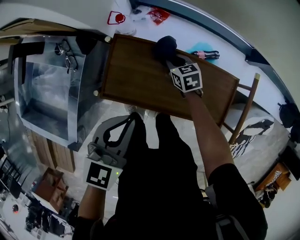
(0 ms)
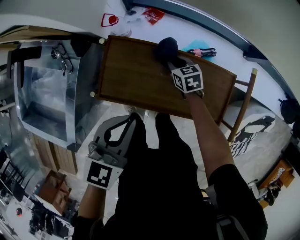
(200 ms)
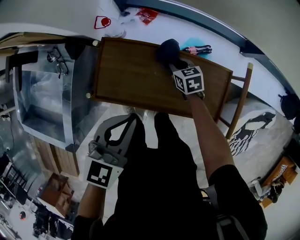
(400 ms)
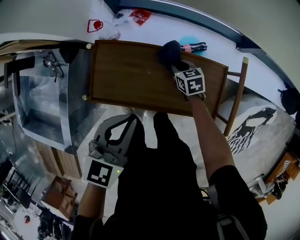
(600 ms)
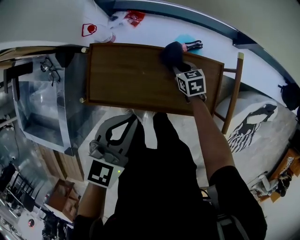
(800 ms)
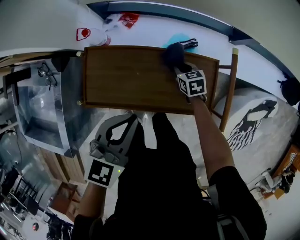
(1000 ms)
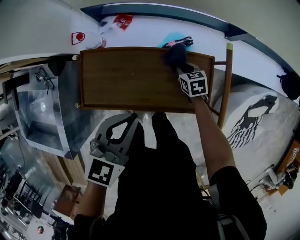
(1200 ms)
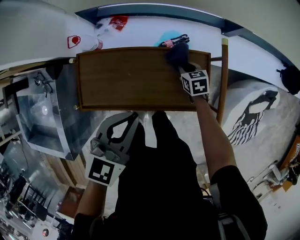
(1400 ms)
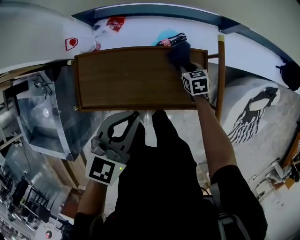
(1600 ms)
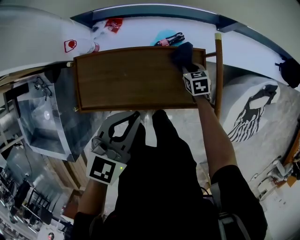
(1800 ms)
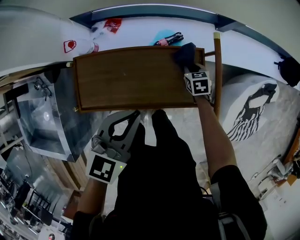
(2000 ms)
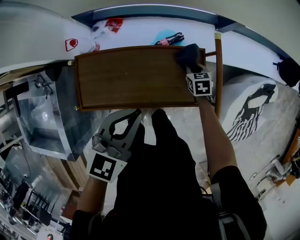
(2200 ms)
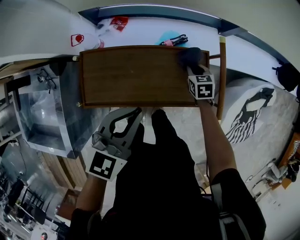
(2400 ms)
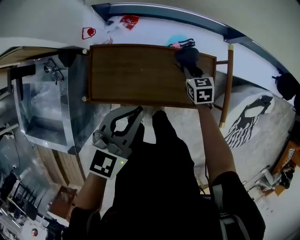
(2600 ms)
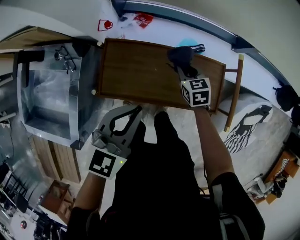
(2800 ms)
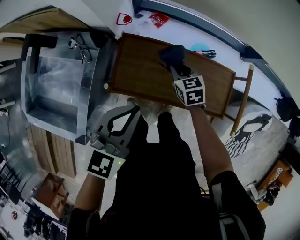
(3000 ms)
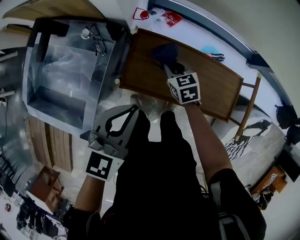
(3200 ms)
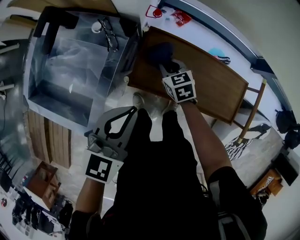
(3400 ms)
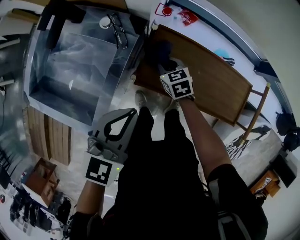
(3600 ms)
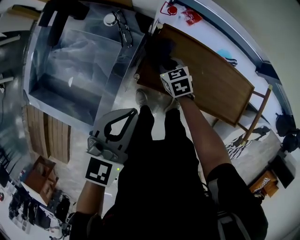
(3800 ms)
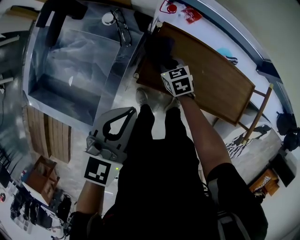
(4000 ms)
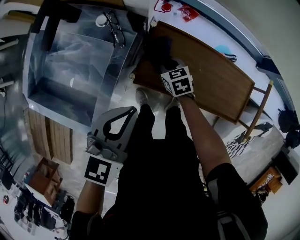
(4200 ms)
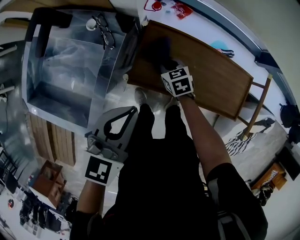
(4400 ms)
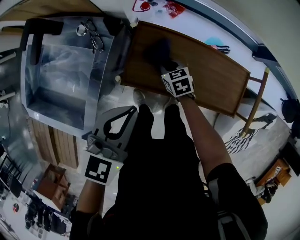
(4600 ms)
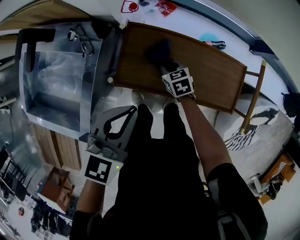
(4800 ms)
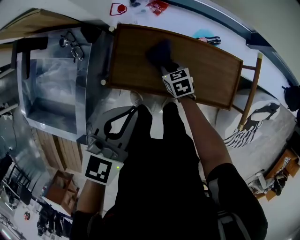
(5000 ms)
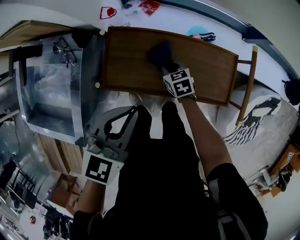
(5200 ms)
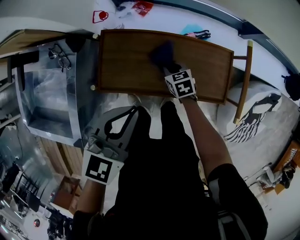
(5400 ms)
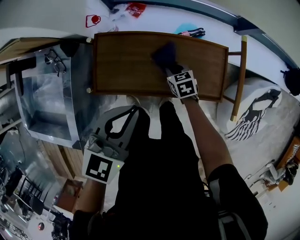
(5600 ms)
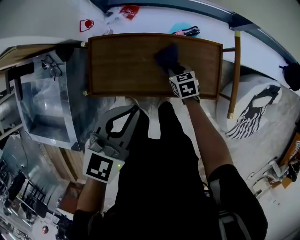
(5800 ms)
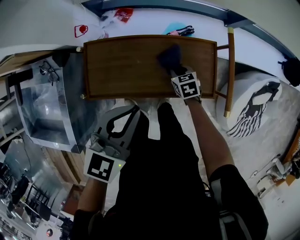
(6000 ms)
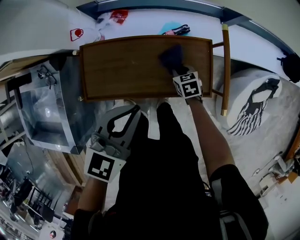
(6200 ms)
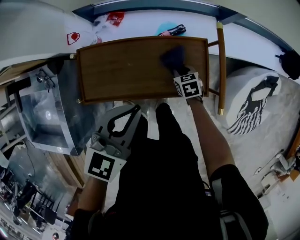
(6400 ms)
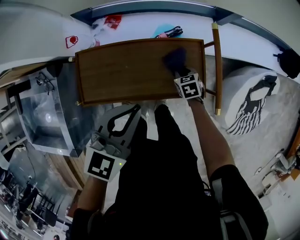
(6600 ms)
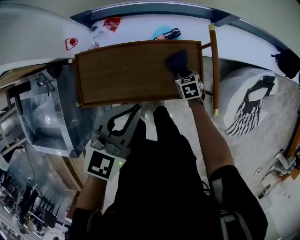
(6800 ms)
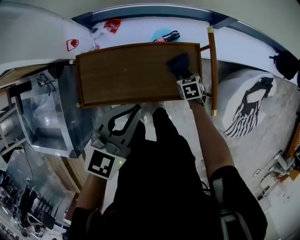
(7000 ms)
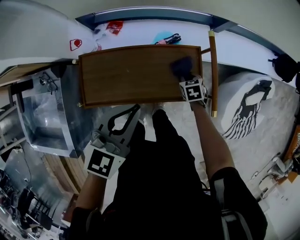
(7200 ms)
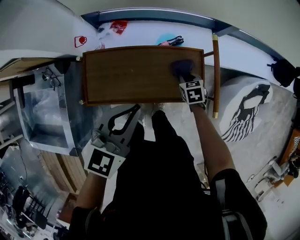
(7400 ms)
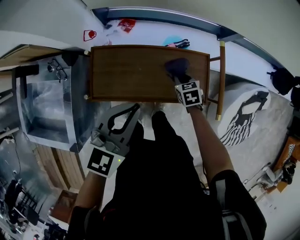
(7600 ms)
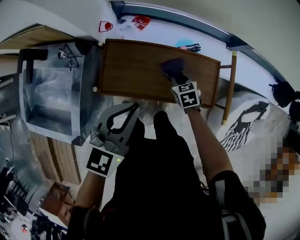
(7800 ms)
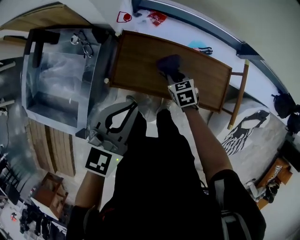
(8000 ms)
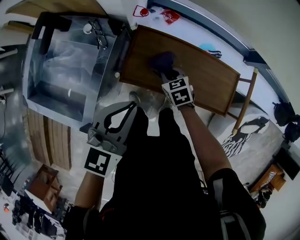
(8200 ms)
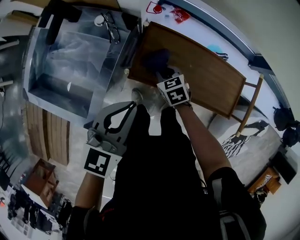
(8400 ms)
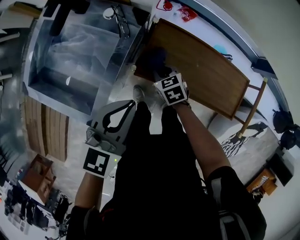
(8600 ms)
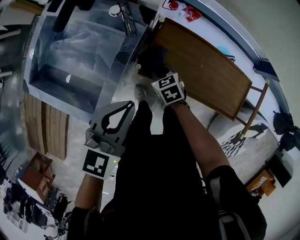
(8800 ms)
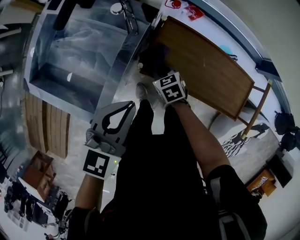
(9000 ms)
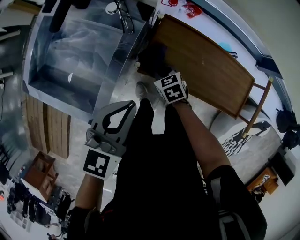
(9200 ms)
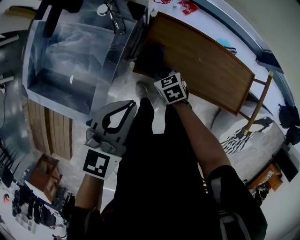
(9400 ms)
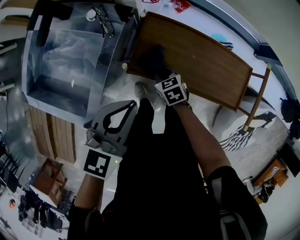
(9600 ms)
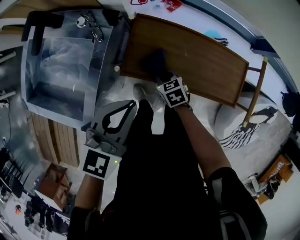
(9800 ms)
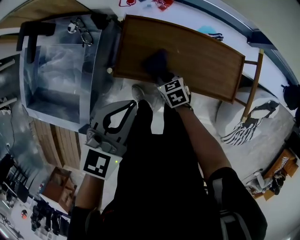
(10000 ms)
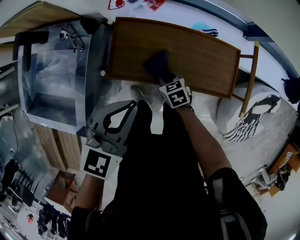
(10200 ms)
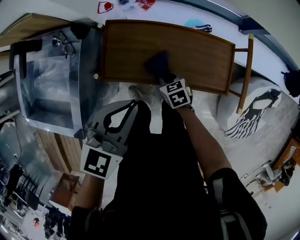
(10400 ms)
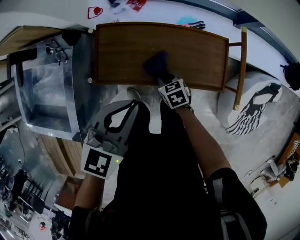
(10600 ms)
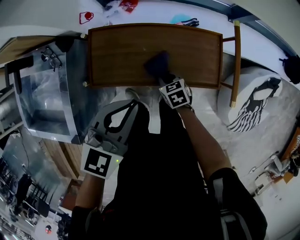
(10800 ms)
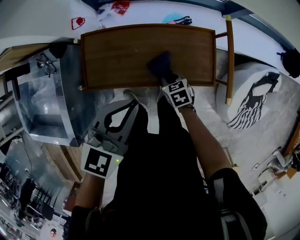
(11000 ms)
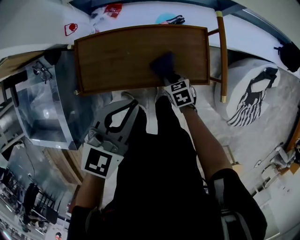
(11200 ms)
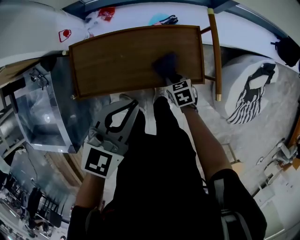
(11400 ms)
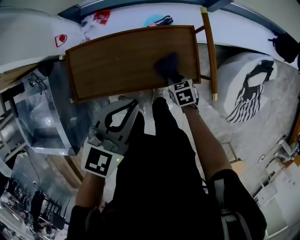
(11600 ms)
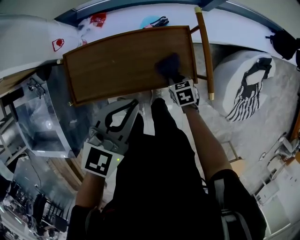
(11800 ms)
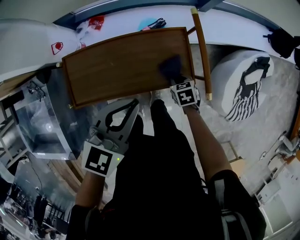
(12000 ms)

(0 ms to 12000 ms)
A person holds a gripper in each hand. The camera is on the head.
0 ms - 1600 ms: The left gripper heads to the right, covering about 20 cm; the right gripper travels to the right by approximately 25 cm, and swivels roughly 20 degrees.
1600 ms - 3000 ms: The grippers both shift to the left by roughly 25 cm.
3000 ms - 4400 ms: The right gripper heads to the left and downward, covering roughly 20 cm. The left gripper is displaced to the left by some 10 cm.
4400 ms - 6000 ms: Both grippers travel together to the right, approximately 30 cm. The right gripper rotates about 20 degrees.
6000 ms - 7600 ms: The right gripper shifts approximately 5 cm upward, and travels to the right and back again, roughly 10 cm each way.
7600 ms - 9000 ms: The right gripper moves approximately 40 cm, and changes its angle by roughly 30 degrees. The left gripper ends up approximately 30 cm from where it was, and changes its angle by roughly 20 degrees.
9000 ms - 10400 ms: Both grippers move to the right, approximately 20 cm.
10400 ms - 12000 ms: Both grippers travel together to the right, some 25 cm. The right gripper changes its angle by roughly 20 degrees.

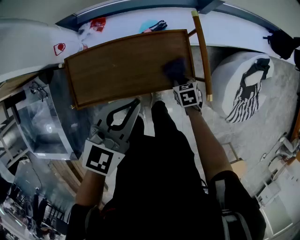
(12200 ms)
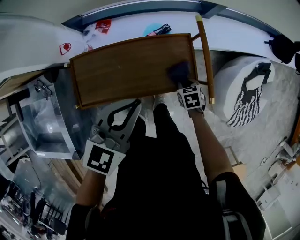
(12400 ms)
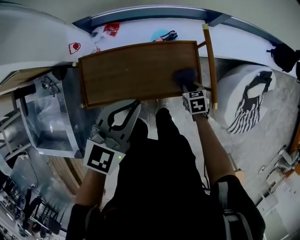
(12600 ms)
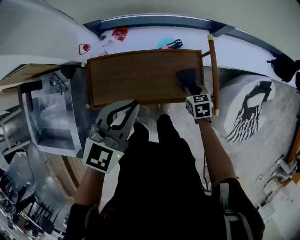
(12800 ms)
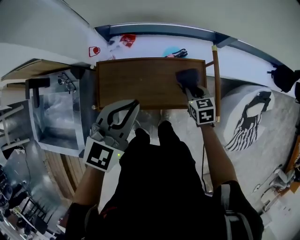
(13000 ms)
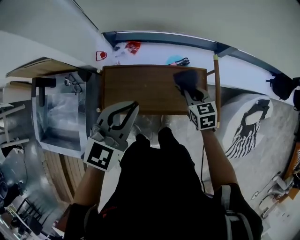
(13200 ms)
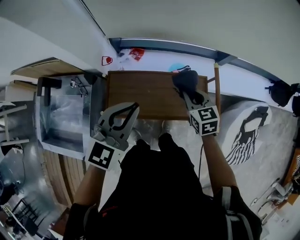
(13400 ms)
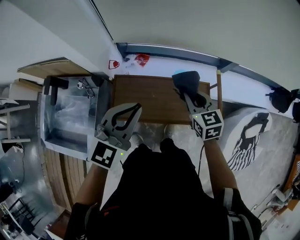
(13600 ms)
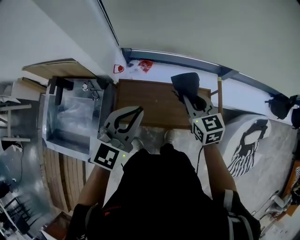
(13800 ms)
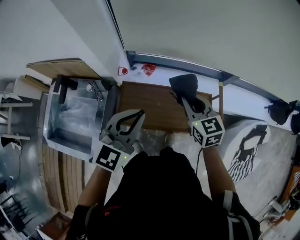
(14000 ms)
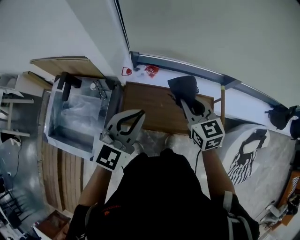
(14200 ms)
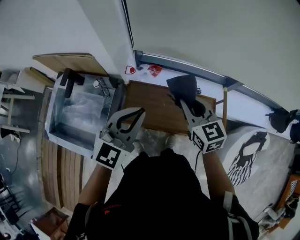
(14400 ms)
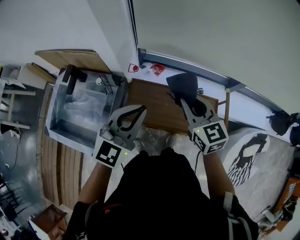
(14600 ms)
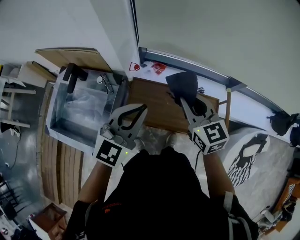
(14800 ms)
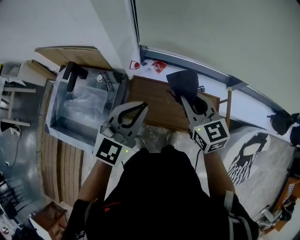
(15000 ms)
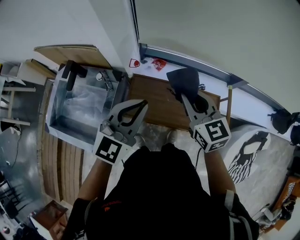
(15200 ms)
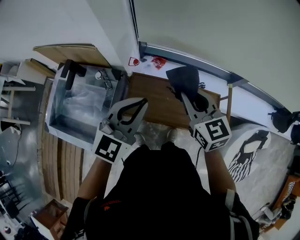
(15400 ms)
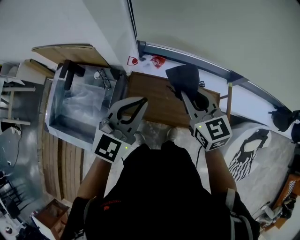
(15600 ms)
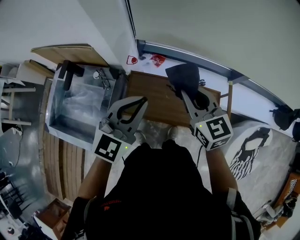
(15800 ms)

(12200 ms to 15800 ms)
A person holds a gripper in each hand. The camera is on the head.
12200 ms - 14000 ms: The left gripper heads to the left and upward, covering some 25 cm, and rotates about 20 degrees, while the right gripper heads upward and to the left, covering some 40 cm, and tilts its fingers some 40 degrees upward.
14000 ms - 15800 ms: The right gripper is displaced to the left by some 5 cm.

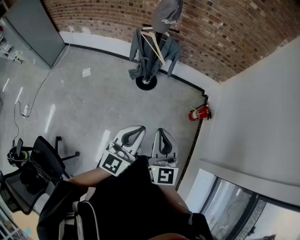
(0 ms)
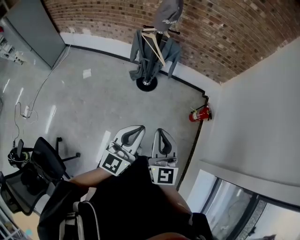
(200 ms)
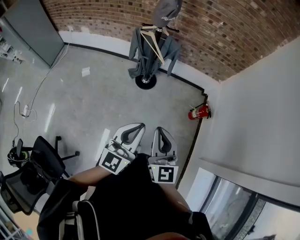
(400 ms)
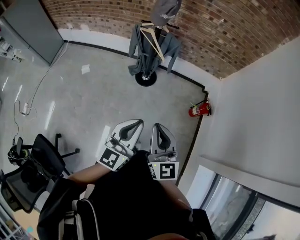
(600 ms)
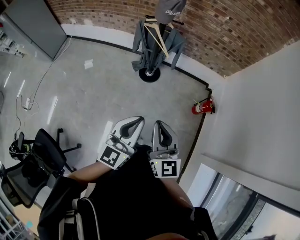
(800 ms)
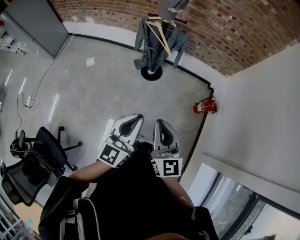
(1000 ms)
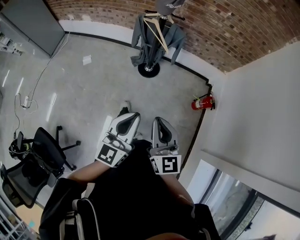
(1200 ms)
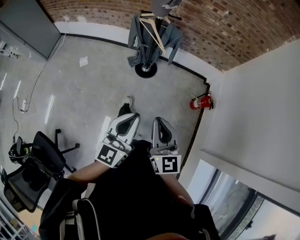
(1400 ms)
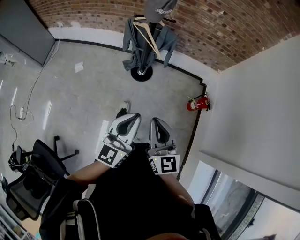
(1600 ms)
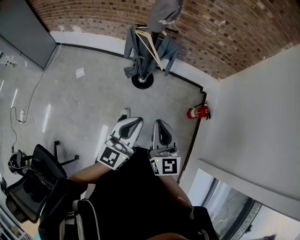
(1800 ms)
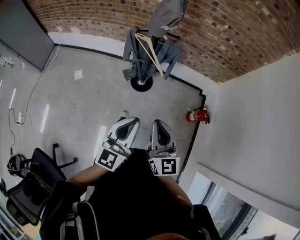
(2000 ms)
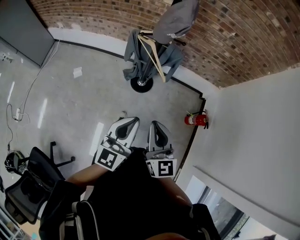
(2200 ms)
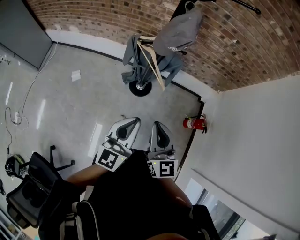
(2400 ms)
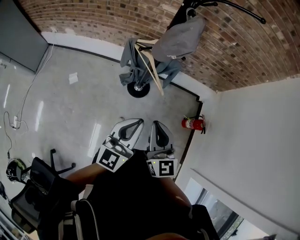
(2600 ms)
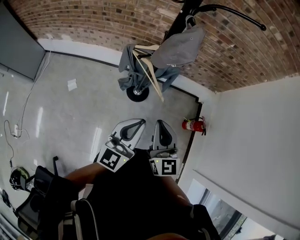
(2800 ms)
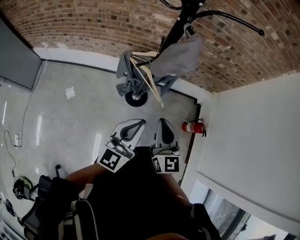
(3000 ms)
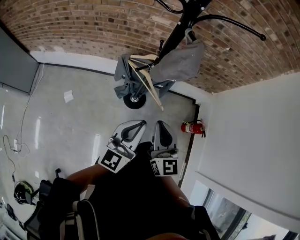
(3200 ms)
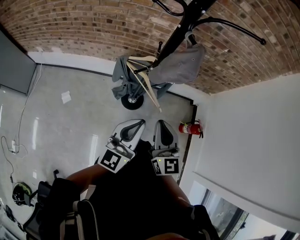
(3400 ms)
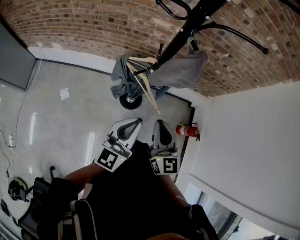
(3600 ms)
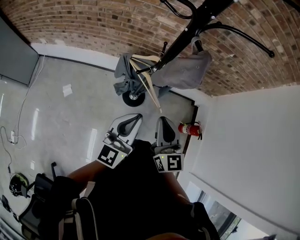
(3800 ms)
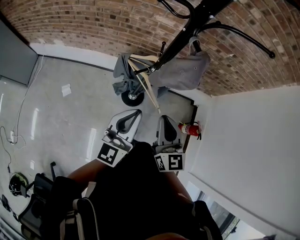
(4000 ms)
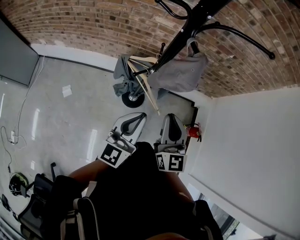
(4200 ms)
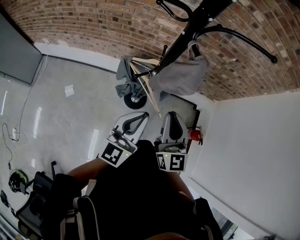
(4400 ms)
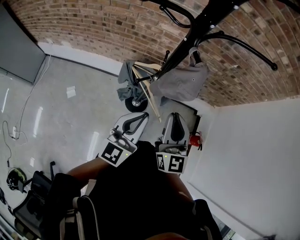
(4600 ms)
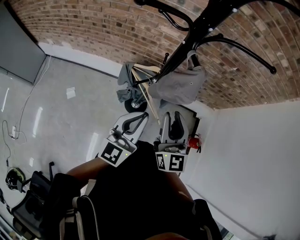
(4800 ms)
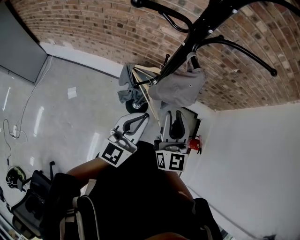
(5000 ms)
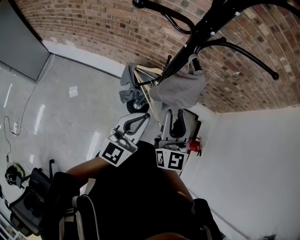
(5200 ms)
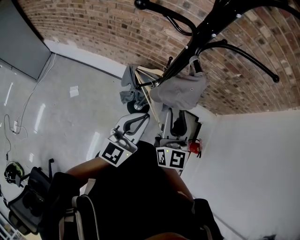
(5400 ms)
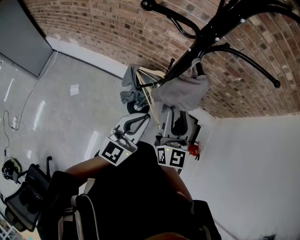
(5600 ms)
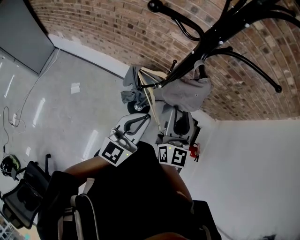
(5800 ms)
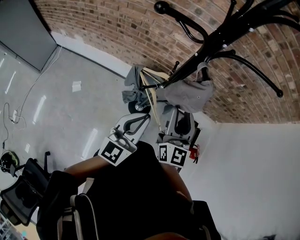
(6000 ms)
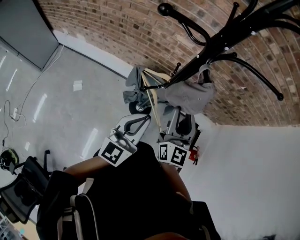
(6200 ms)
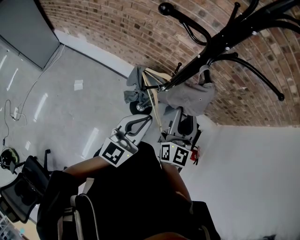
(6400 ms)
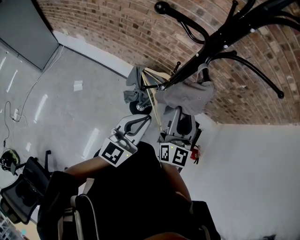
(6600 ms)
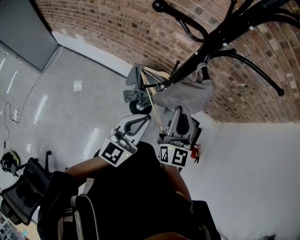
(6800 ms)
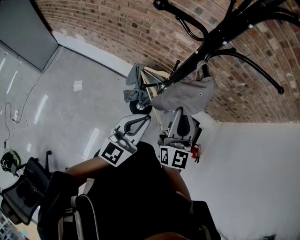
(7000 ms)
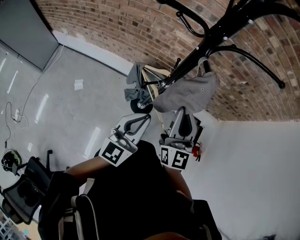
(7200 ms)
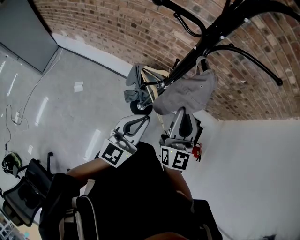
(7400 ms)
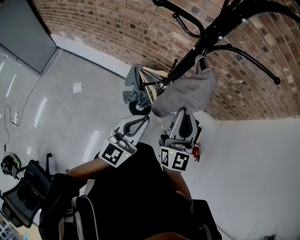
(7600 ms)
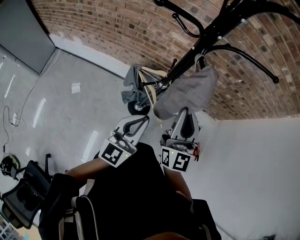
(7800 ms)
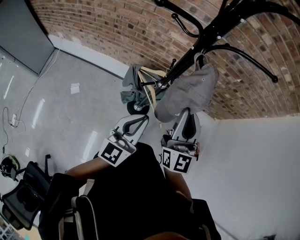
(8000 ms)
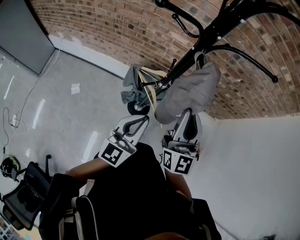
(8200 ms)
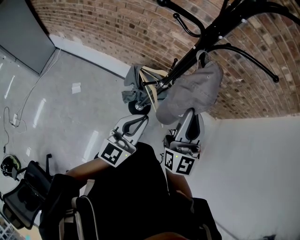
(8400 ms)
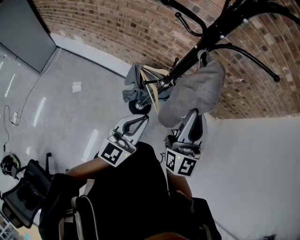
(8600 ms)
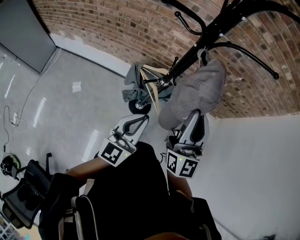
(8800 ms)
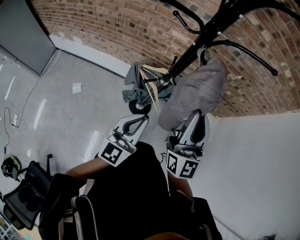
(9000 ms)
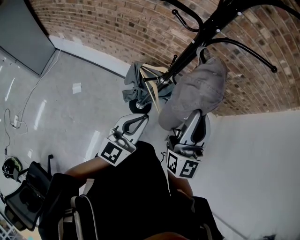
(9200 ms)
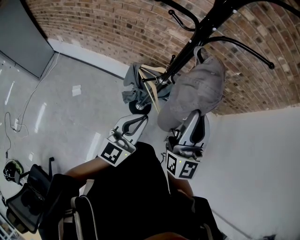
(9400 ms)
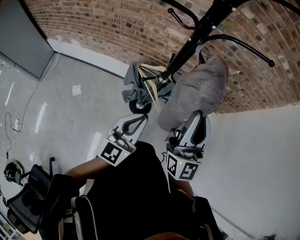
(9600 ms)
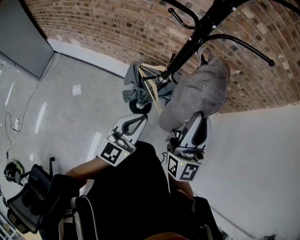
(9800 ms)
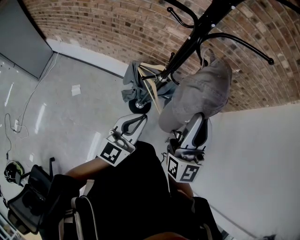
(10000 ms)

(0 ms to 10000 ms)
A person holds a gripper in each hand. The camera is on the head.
0 ms - 1400 ms: The left gripper shifts by about 5 cm.
1400 ms - 2800 ms: Both grippers travel together forward, some 30 cm.
2800 ms - 4200 ms: Both grippers travel together forward, roughly 10 cm.
4200 ms - 5800 ms: The right gripper moves forward, roughly 10 cm, and opens its fingers.
5800 ms - 7200 ms: The right gripper closes its fingers.
7200 ms - 8600 ms: The right gripper shifts approximately 5 cm upward.
8600 ms - 10000 ms: The right gripper changes place by about 5 cm.
